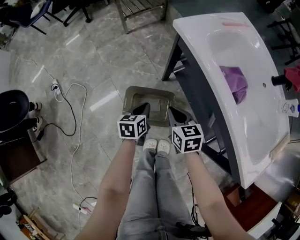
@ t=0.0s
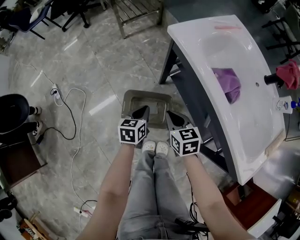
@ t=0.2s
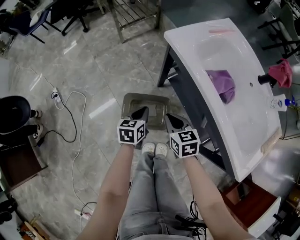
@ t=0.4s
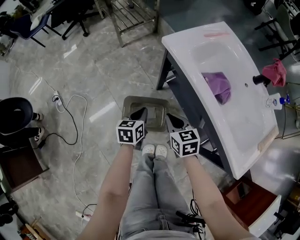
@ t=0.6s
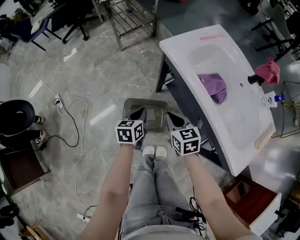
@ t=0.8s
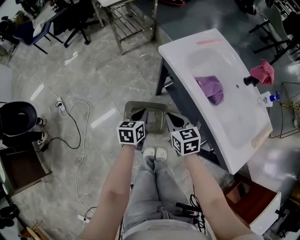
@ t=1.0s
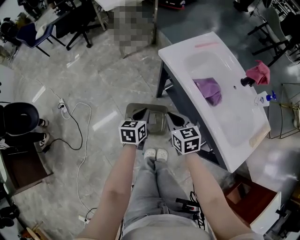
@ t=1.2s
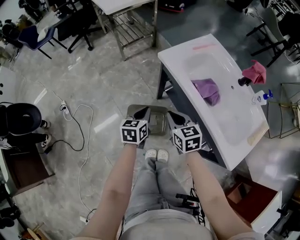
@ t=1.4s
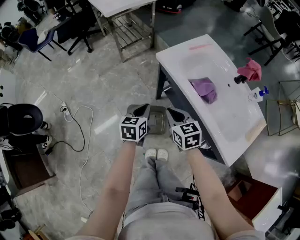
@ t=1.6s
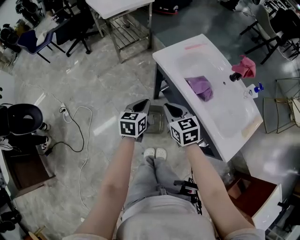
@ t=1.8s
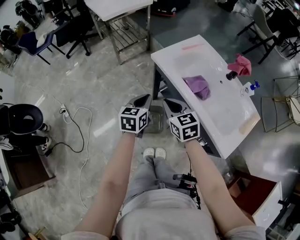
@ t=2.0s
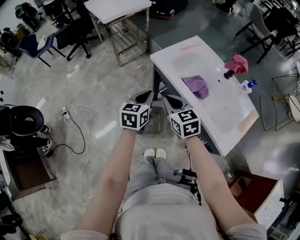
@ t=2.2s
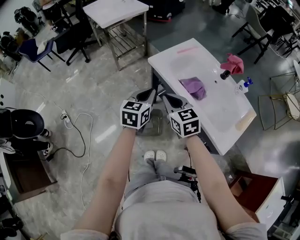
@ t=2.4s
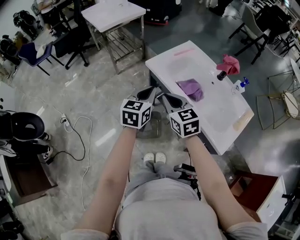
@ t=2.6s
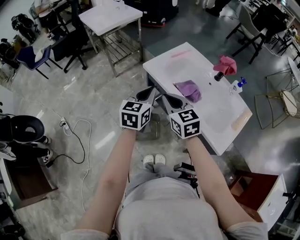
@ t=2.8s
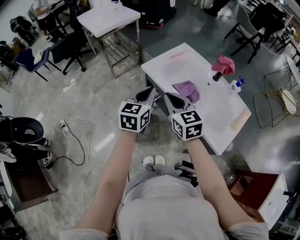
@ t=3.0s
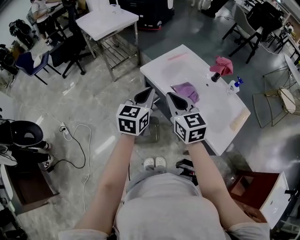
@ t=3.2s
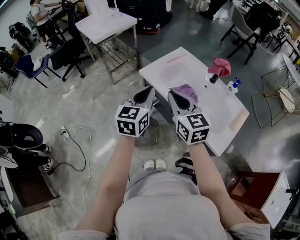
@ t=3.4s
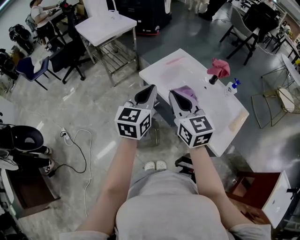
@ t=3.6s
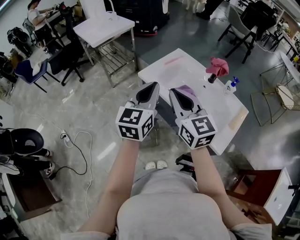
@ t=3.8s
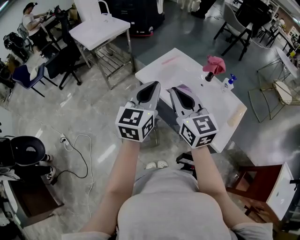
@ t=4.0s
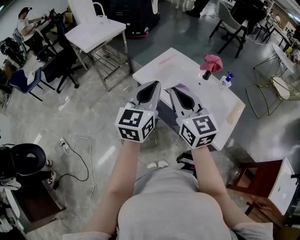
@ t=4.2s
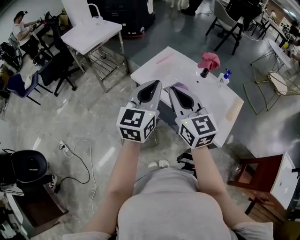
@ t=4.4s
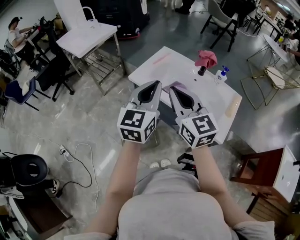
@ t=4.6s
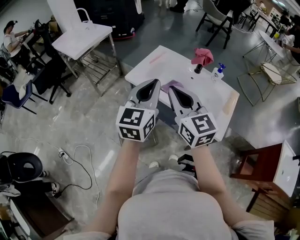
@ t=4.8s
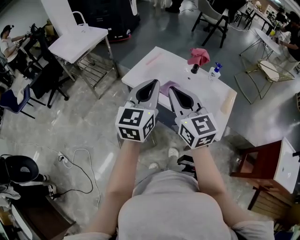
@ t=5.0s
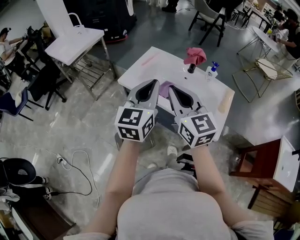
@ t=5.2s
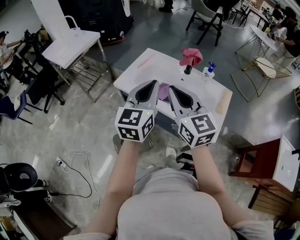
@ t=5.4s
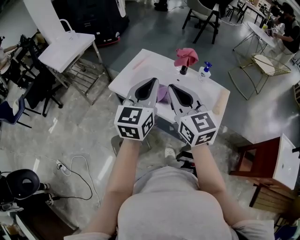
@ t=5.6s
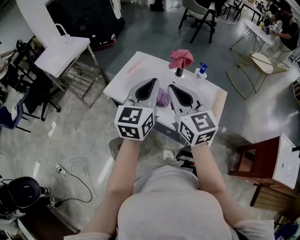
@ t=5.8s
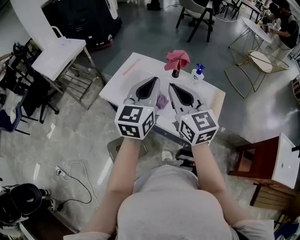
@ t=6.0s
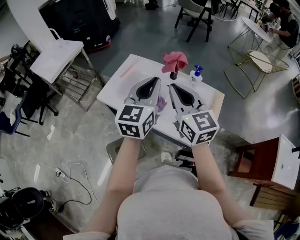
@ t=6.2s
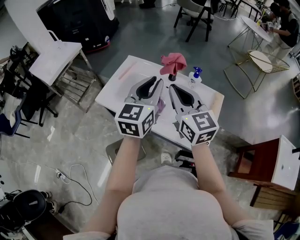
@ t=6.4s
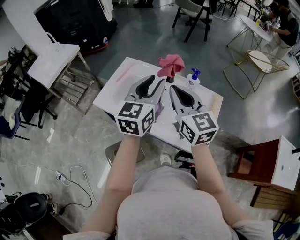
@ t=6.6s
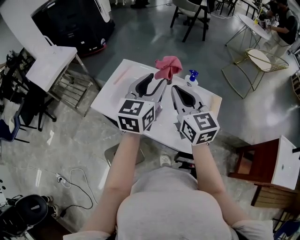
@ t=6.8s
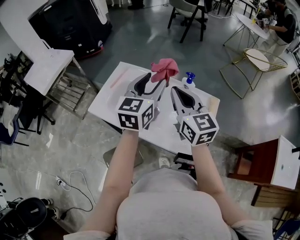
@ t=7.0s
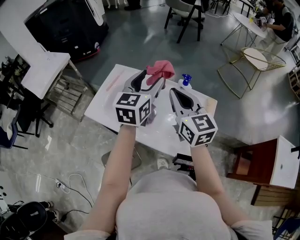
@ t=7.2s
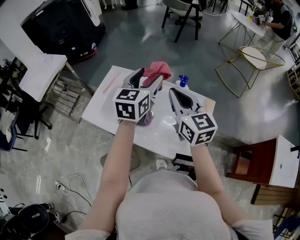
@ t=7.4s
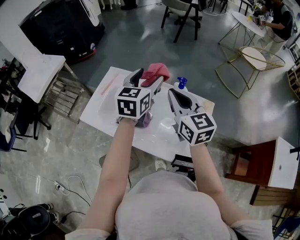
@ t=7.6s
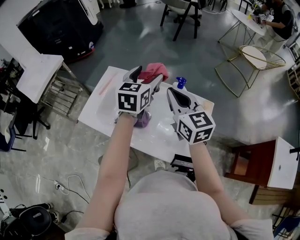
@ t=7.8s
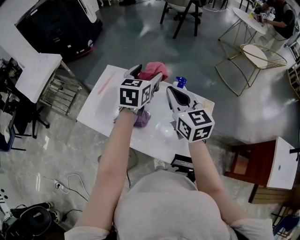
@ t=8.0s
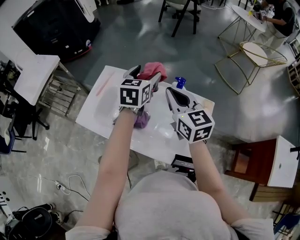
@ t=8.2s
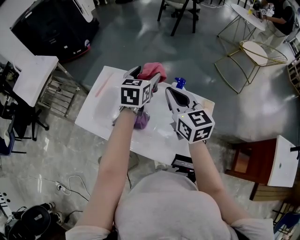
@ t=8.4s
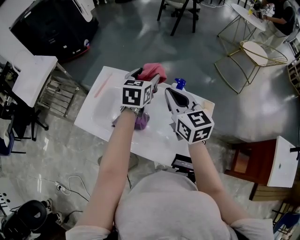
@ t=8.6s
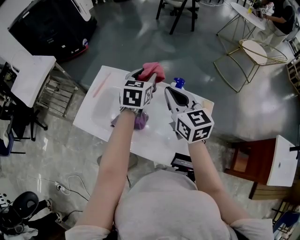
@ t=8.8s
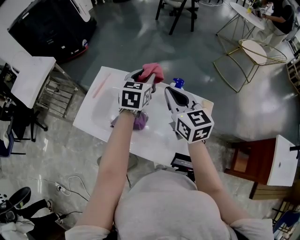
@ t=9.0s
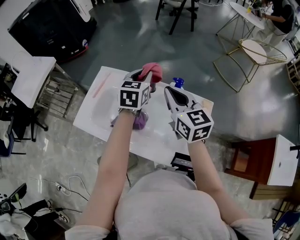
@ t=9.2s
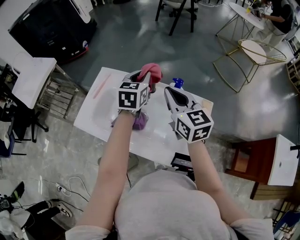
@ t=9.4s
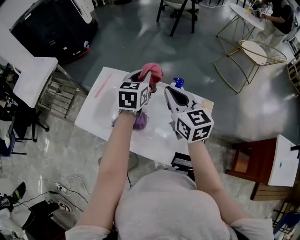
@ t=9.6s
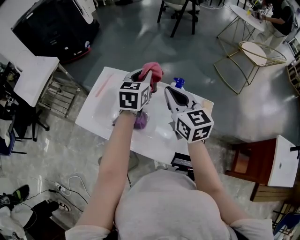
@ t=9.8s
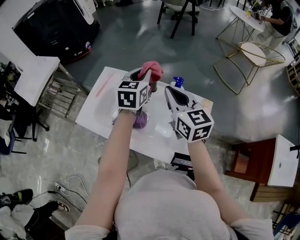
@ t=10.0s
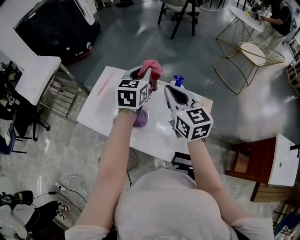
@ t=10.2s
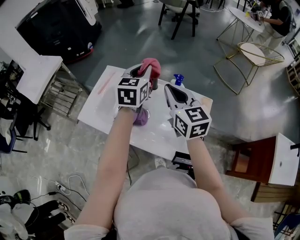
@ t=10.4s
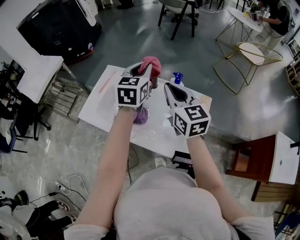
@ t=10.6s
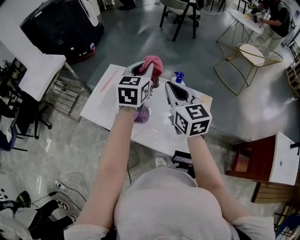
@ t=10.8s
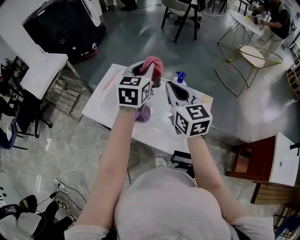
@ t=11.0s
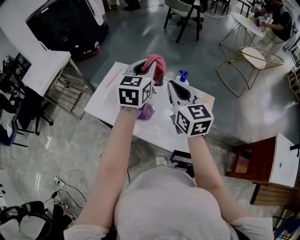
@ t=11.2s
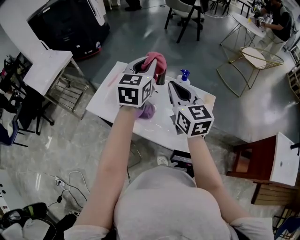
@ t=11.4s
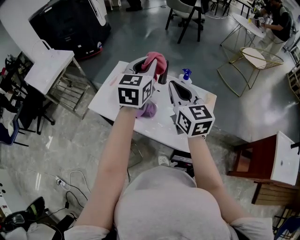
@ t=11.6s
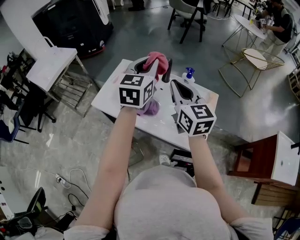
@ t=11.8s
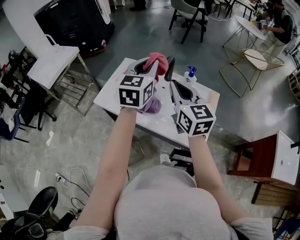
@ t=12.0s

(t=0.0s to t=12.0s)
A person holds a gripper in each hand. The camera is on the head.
t=0.0s - t=1.6s: The grippers both shift upward by about 20 cm.
t=1.6s - t=3.0s: The left gripper shifts approximately 20 cm upward and to the right, and swivels roughly 20 degrees. Meanwhile the right gripper heads upward, covering some 15 cm.
t=3.0s - t=4.4s: The two grippers go some 10 cm upward.
t=4.4s - t=6.0s: The two grippers go about 15 cm to the right and forward.
t=6.0s - t=7.6s: Both grippers move forward and to the right, approximately 20 cm. The left gripper opens its fingers.
t=7.6s - t=9.0s: The left gripper shifts about 10 cm downward and forward, and closes up. Meanwhile the right gripper changes place by roughly 5 cm.
t=9.0s - t=10.4s: The left gripper moves upward, about 5 cm.
t=10.4s - t=12.0s: The left gripper travels backward, upward and to the left by approximately 15 cm; the right gripper is displaced backward and to the left by roughly 10 cm.

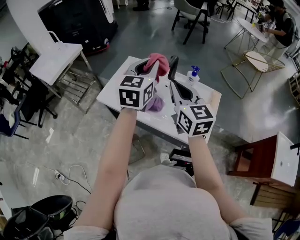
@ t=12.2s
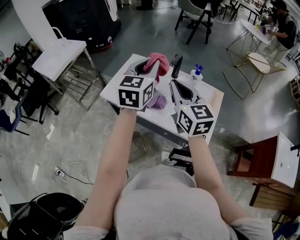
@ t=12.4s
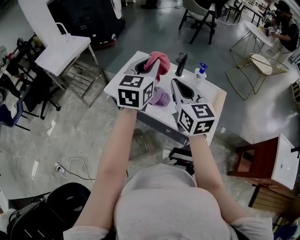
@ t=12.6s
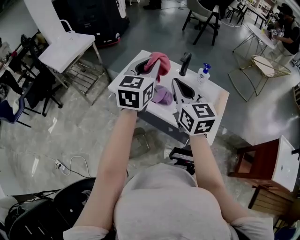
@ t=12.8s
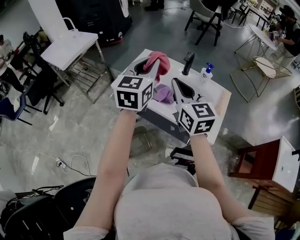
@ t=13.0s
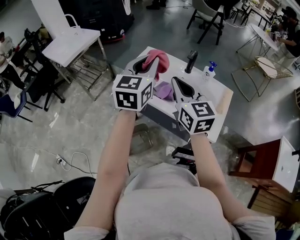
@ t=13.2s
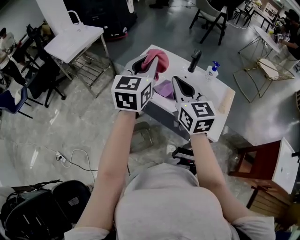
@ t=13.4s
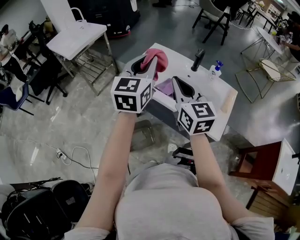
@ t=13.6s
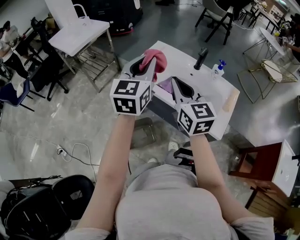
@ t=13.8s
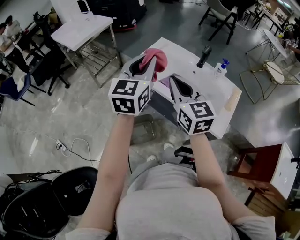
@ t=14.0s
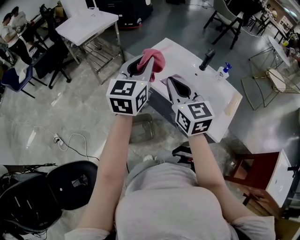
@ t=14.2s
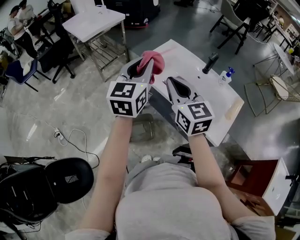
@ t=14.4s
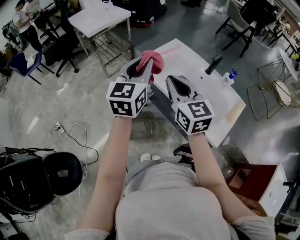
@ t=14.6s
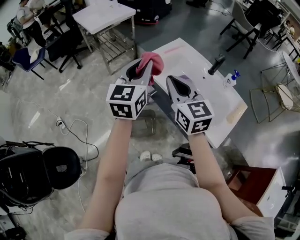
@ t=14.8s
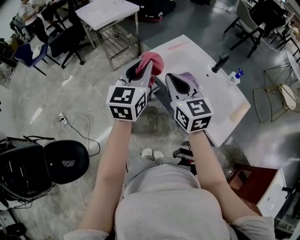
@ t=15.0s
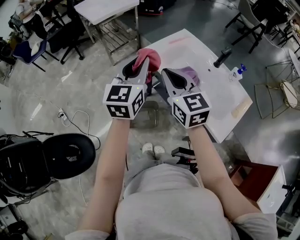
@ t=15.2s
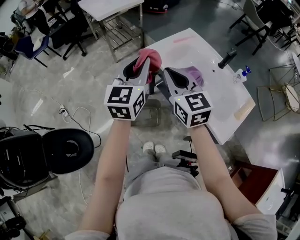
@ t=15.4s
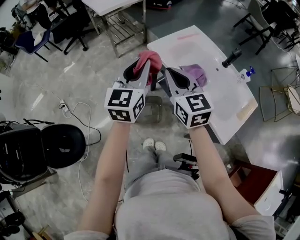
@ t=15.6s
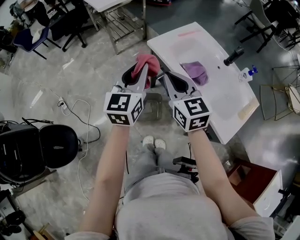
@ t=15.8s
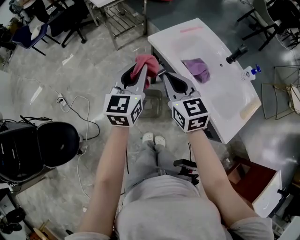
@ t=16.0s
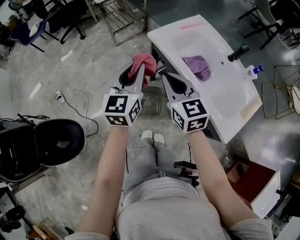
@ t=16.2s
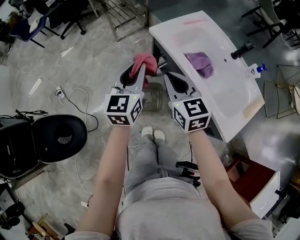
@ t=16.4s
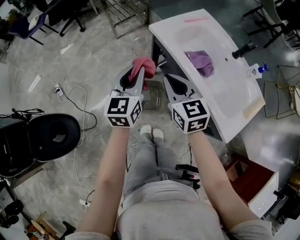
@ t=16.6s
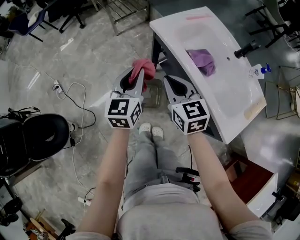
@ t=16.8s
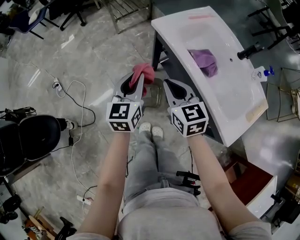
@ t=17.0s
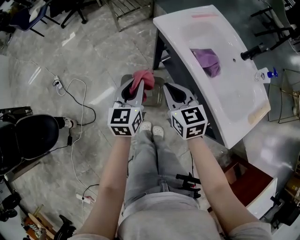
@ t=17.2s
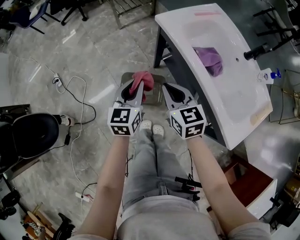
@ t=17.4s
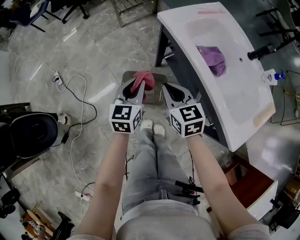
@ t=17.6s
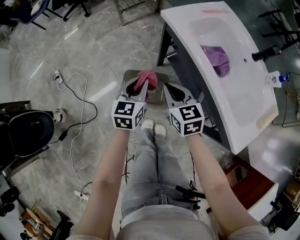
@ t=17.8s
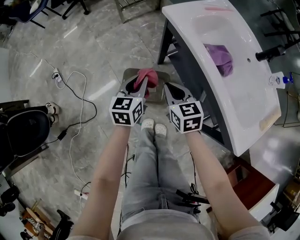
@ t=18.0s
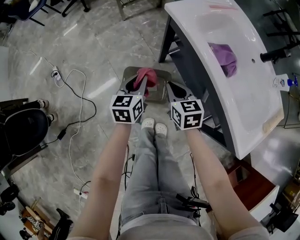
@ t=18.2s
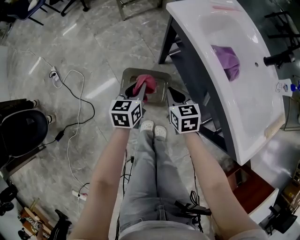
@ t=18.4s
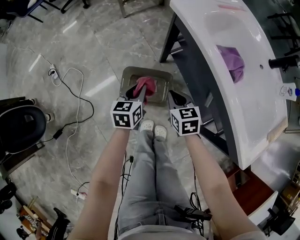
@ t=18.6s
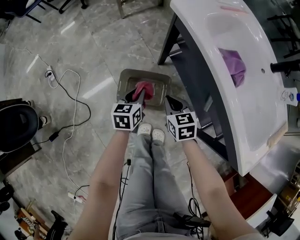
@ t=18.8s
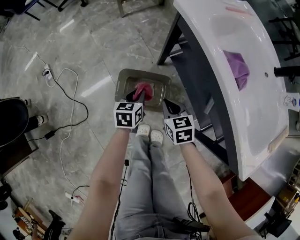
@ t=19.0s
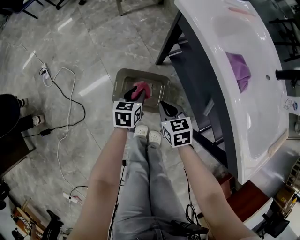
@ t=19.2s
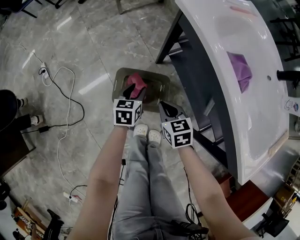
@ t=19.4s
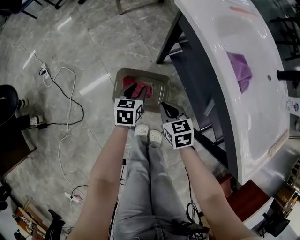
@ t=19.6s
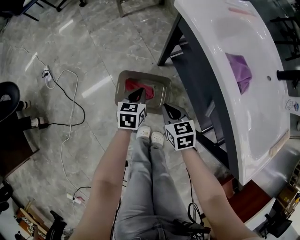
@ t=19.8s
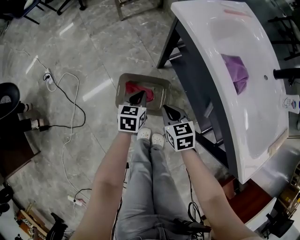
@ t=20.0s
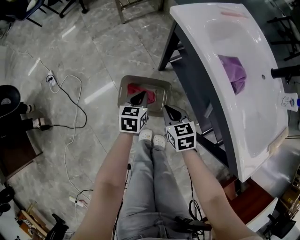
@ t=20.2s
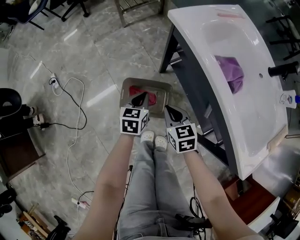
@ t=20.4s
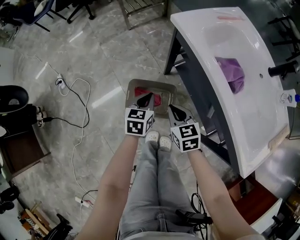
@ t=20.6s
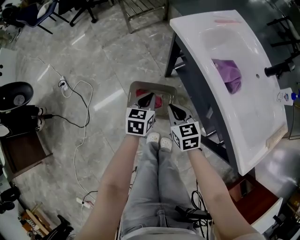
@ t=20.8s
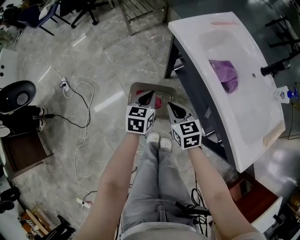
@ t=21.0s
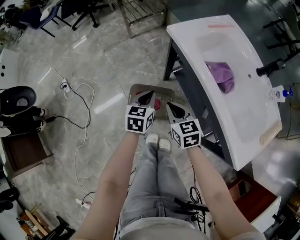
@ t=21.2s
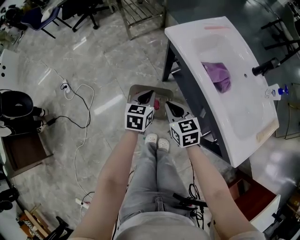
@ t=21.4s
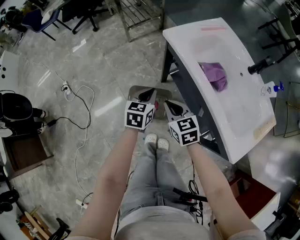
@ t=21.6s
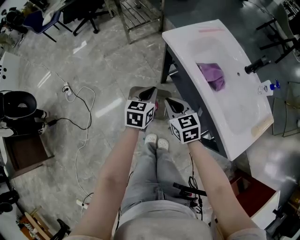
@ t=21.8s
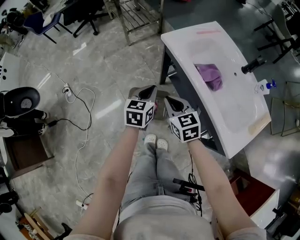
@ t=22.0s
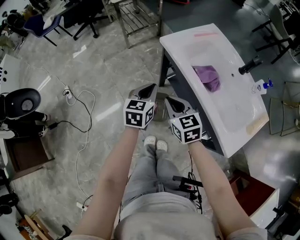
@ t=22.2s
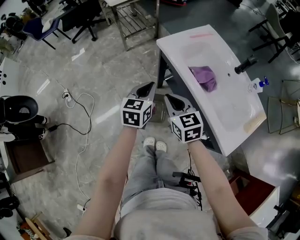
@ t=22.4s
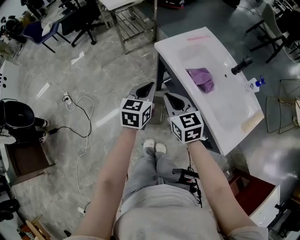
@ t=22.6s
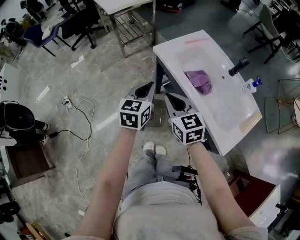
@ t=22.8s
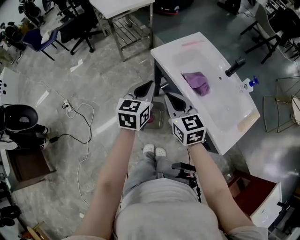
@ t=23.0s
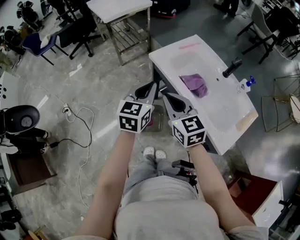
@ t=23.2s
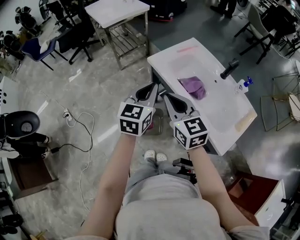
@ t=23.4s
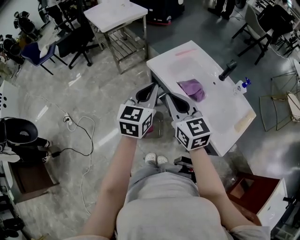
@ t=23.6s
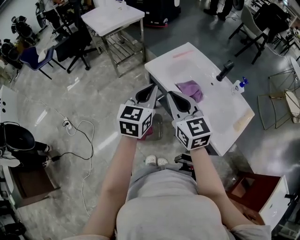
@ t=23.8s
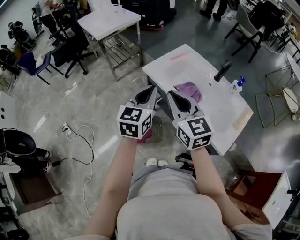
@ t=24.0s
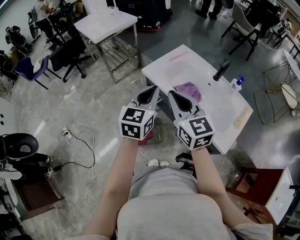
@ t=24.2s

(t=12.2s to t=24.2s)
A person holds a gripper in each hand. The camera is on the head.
t=12.2s - t=13.8s: Both grippers move to the left and backward, approximately 15 cm.
t=13.8s - t=15.2s: The left gripper heads to the left and backward, covering roughly 10 cm. The right gripper shifts roughly 10 cm to the left, and swivels some 20 degrees.
t=15.2s - t=16.6s: The grippers both shift downward by approximately 15 cm.
t=16.6s - t=18.2s: Both grippers travel together downward, some 20 cm. The left gripper swivels about 20 degrees.
t=18.2s - t=19.8s: The grippers both shift downward by approximately 15 cm. The left gripper opens and closes again.
t=19.8s - t=21.2s: The two grippers go some 15 cm upward.
t=21.2s - t=22.6s: The two grippers go roughly 20 cm upward.
t=22.6s - t=24.2s: The two grippers go about 15 cm upward. The right gripper turns by some 20 degrees.
